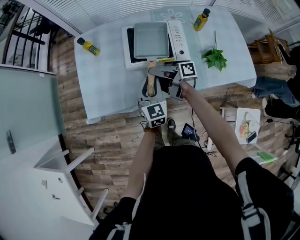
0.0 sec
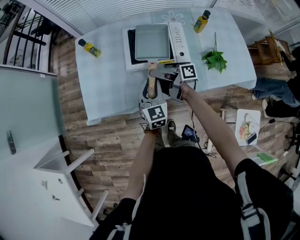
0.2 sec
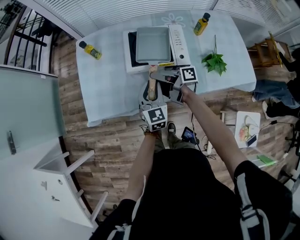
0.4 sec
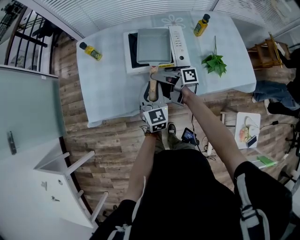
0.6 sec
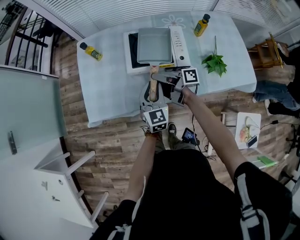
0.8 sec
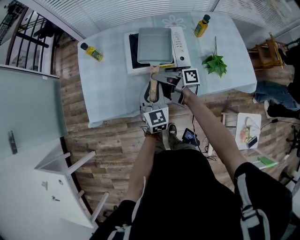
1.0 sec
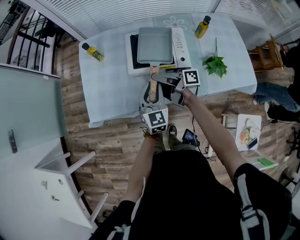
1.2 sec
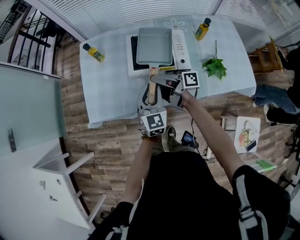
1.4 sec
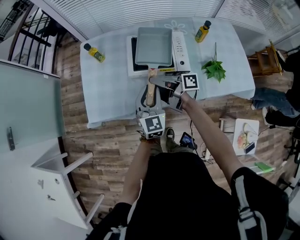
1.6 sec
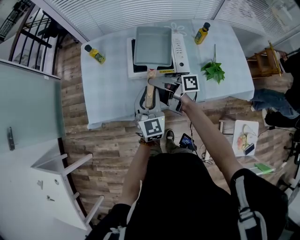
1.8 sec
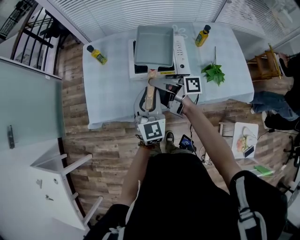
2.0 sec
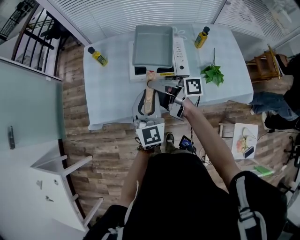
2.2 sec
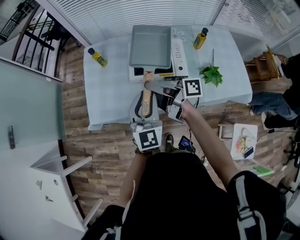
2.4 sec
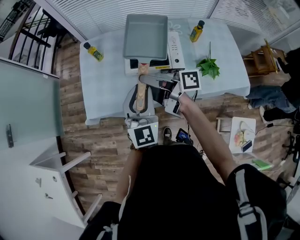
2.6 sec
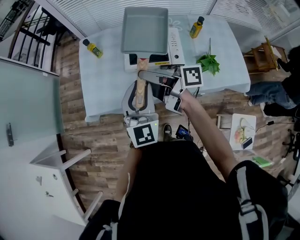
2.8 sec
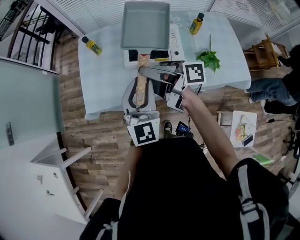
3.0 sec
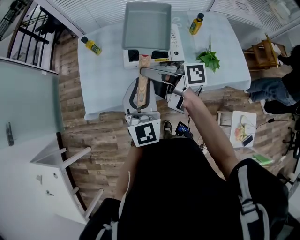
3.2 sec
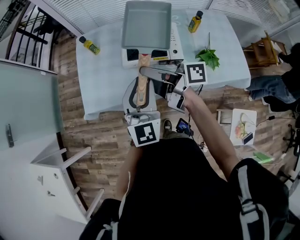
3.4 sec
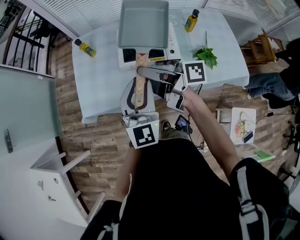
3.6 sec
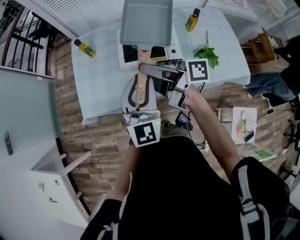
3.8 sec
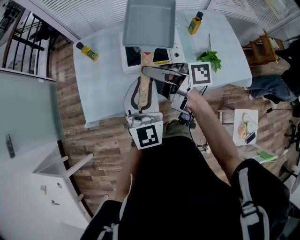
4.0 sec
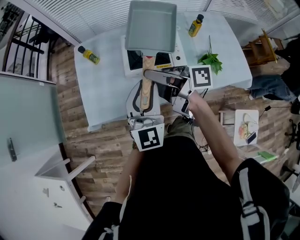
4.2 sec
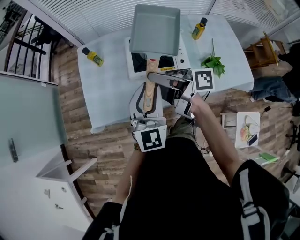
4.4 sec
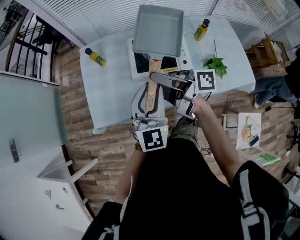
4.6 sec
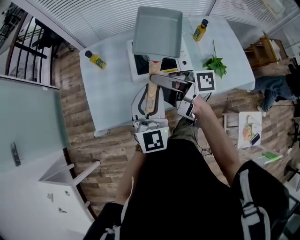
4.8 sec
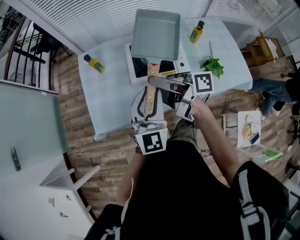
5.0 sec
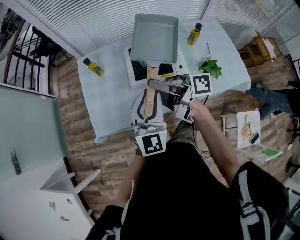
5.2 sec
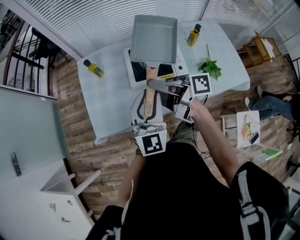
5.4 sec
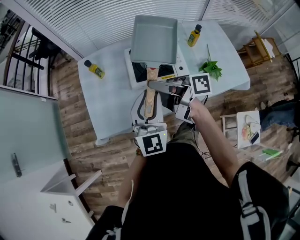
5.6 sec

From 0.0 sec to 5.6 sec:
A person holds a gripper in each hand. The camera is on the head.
From 0.0 sec to 1.4 sec: The grippers make only small movements.
From 1.4 sec to 2.8 sec: The grippers both shift upward by roughly 15 cm.
From 2.8 sec to 5.6 sec: There are only small adjustments of the grippers.

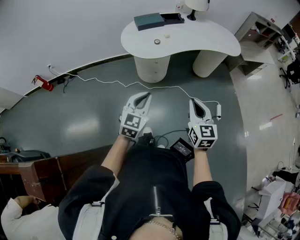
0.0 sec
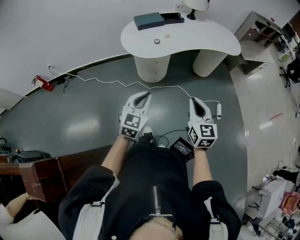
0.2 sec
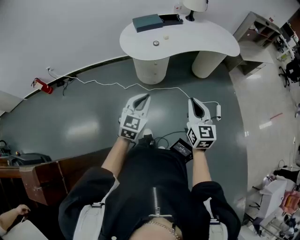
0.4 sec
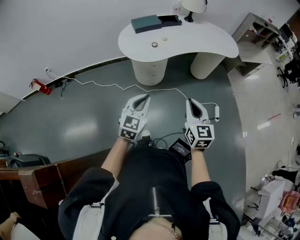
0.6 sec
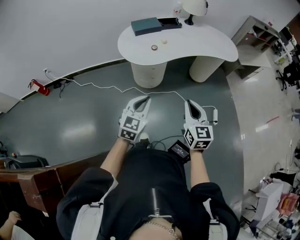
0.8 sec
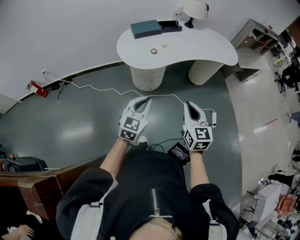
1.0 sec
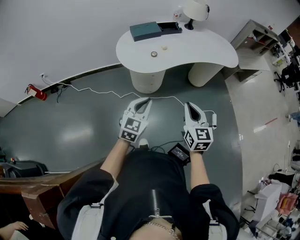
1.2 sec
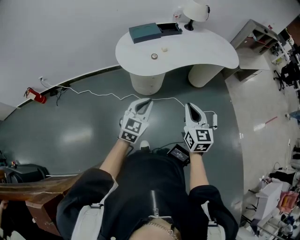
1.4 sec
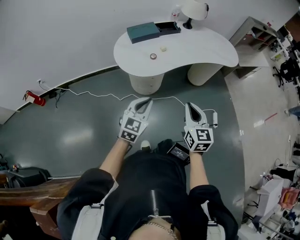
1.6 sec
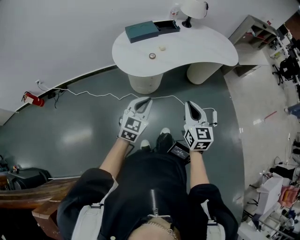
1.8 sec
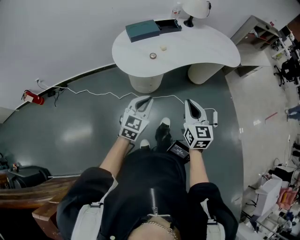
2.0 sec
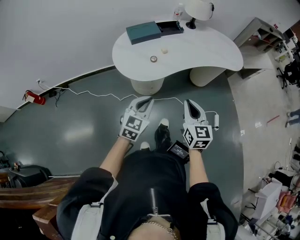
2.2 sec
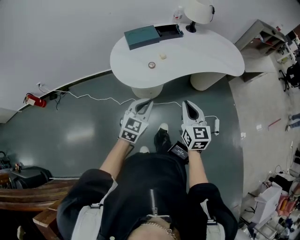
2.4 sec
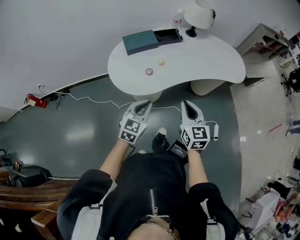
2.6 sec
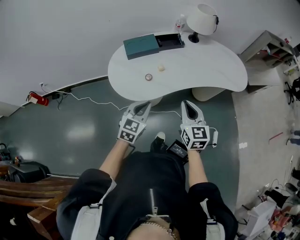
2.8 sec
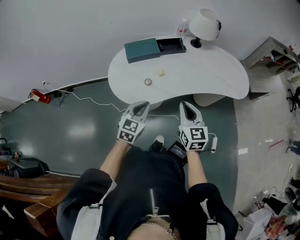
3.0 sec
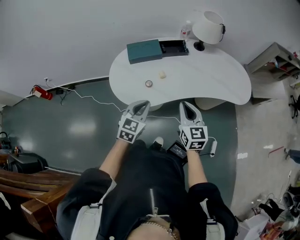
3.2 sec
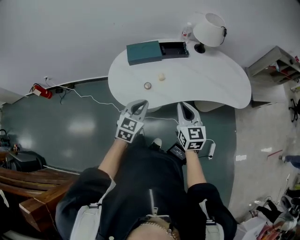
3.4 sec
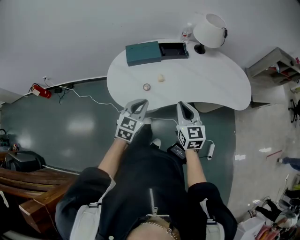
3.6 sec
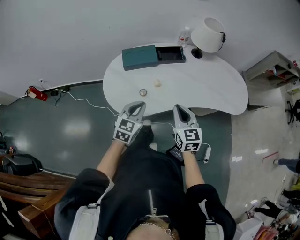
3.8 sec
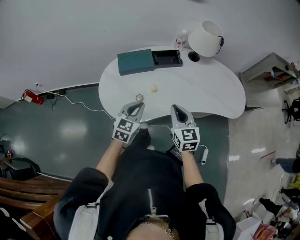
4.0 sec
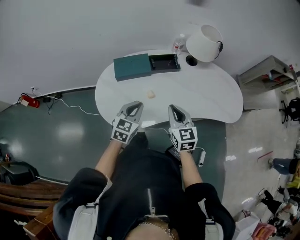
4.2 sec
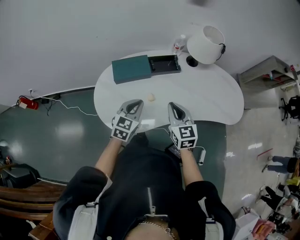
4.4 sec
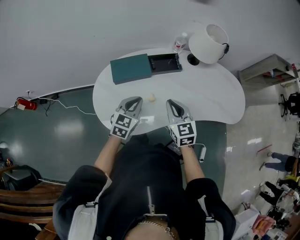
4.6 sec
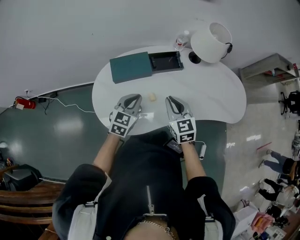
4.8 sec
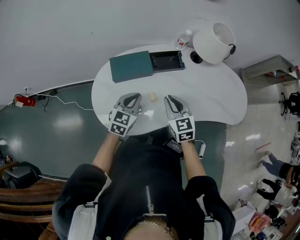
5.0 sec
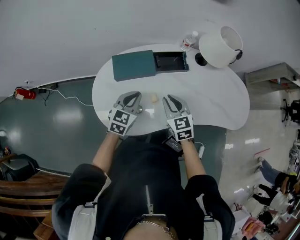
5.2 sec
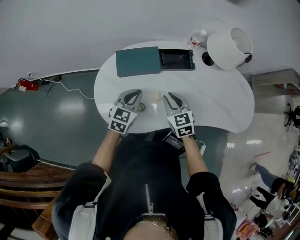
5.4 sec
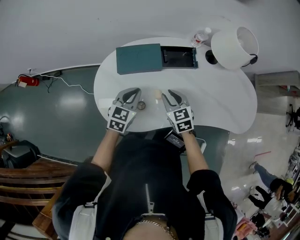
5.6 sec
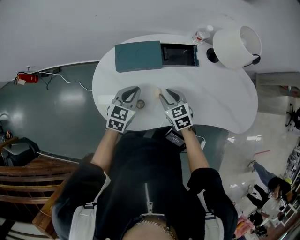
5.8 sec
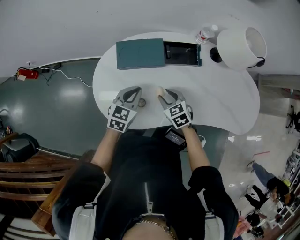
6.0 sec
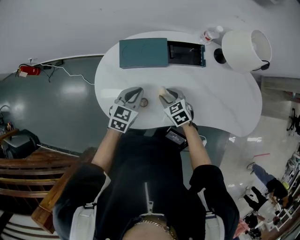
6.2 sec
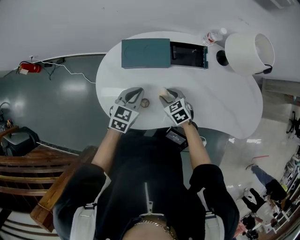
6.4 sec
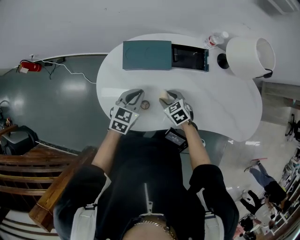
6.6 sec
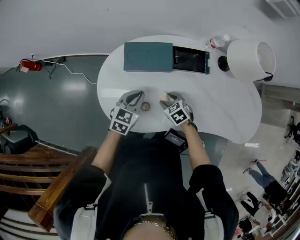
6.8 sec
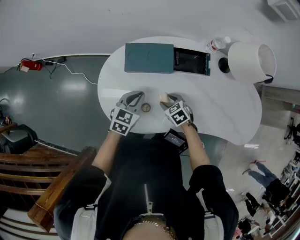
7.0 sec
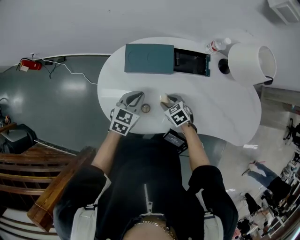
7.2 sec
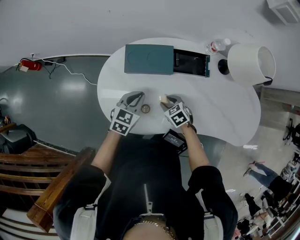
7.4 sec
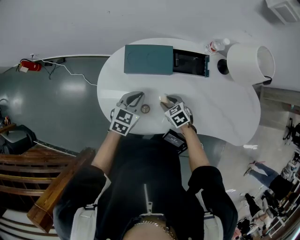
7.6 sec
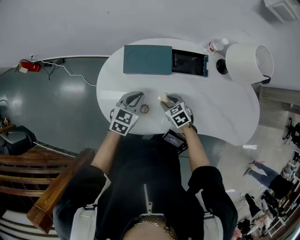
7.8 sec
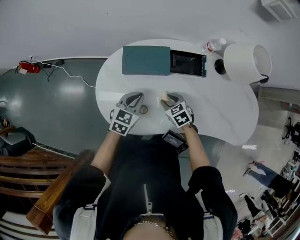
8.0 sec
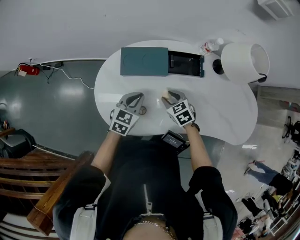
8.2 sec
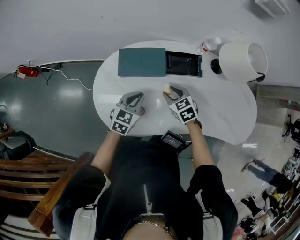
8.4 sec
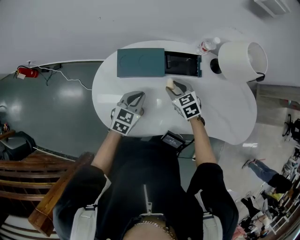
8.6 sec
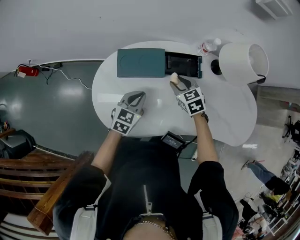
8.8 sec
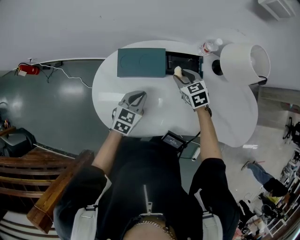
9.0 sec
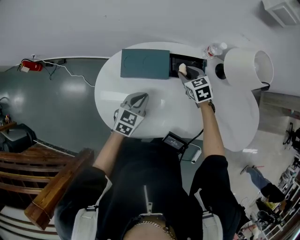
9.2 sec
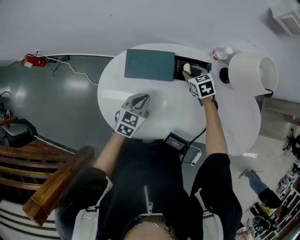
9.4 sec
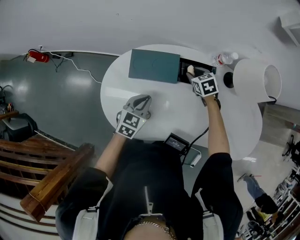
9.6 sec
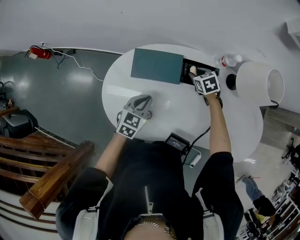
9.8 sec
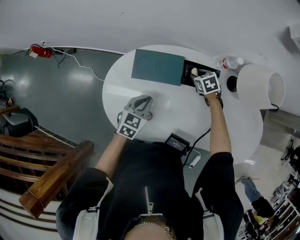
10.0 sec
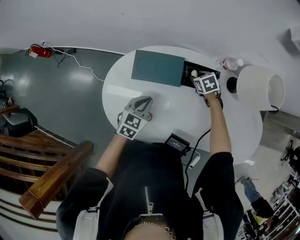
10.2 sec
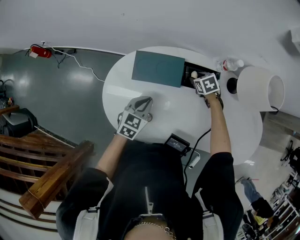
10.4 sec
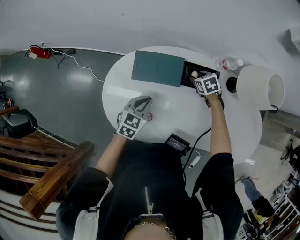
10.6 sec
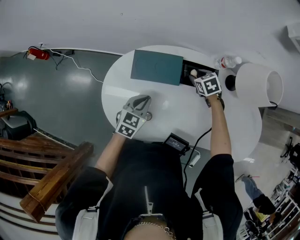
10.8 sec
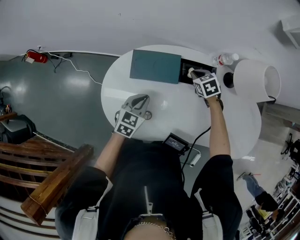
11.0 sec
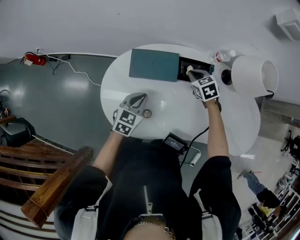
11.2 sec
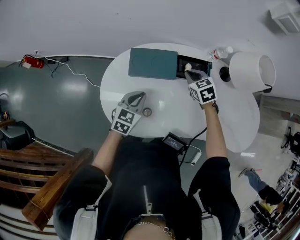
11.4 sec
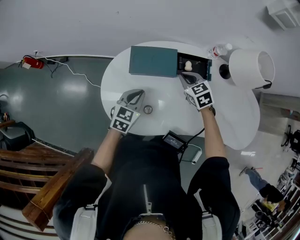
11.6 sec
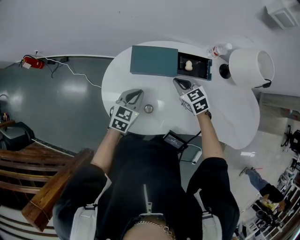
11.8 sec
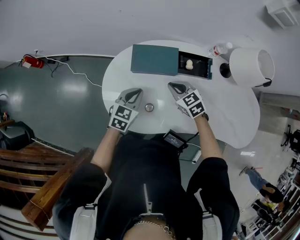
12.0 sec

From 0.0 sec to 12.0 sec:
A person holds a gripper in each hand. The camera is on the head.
From 0.0 sec to 1.6 sec: Both grippers move forward, approximately 10 cm.
From 1.6 sec to 3.0 sec: Both grippers move forward, approximately 25 cm.
From 3.0 sec to 4.4 sec: Both grippers move forward, approximately 20 cm.
From 4.4 sec to 6.0 sec: The left gripper goes about 10 cm downward and forward. Meanwhile the right gripper travels downward and forward by approximately 20 cm, changes its angle by roughly 40 degrees, and opens.
From 6.0 sec to 7.6 sec: The right gripper heads downward, covering about 5 cm.
From 7.6 sec to 9.0 sec: The right gripper is displaced forward, upward and to the right by some 20 cm.
From 9.0 sec to 10.4 sec: The right gripper shifts some 10 cm downward and forward, and rotates some 20 degrees.
From 10.4 sec to 12.0 sec: The left gripper ends up roughly 5 cm from where it was. The right gripper heads backward, to the left and upward, covering some 20 cm, turns by about 30 degrees, and closes up.

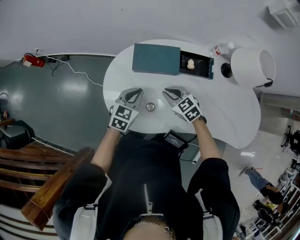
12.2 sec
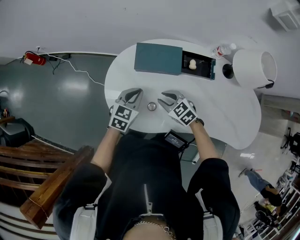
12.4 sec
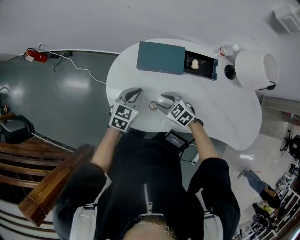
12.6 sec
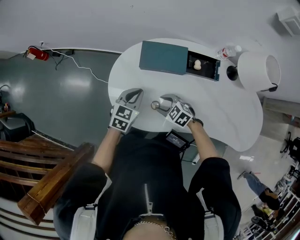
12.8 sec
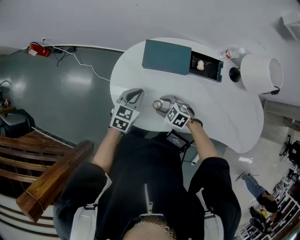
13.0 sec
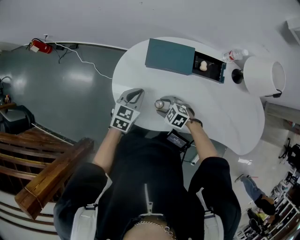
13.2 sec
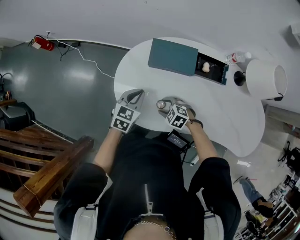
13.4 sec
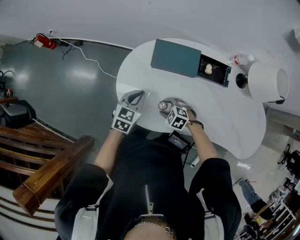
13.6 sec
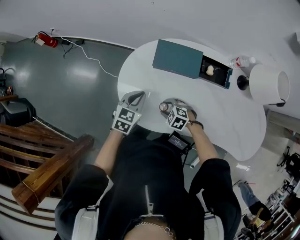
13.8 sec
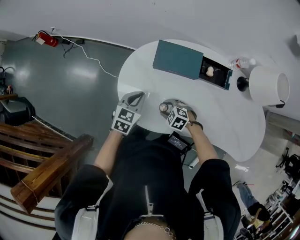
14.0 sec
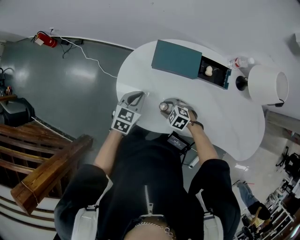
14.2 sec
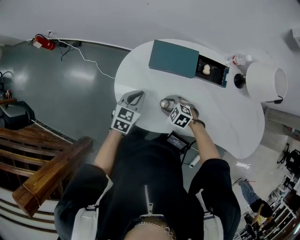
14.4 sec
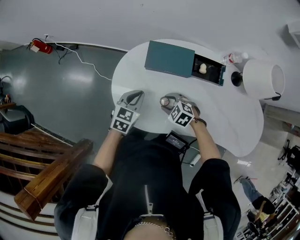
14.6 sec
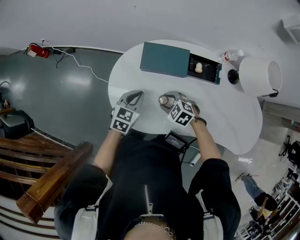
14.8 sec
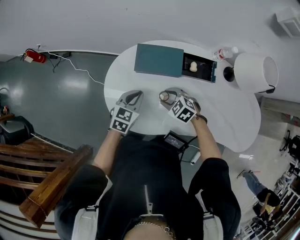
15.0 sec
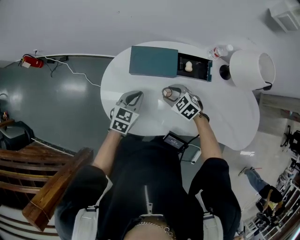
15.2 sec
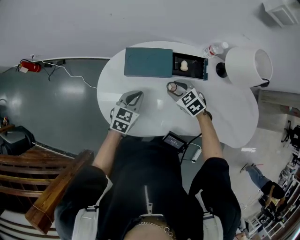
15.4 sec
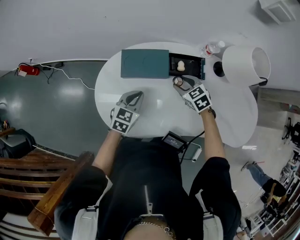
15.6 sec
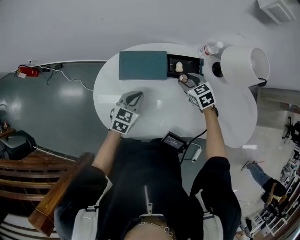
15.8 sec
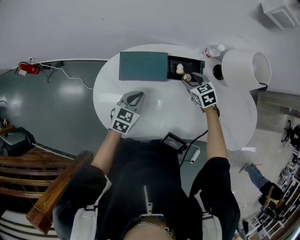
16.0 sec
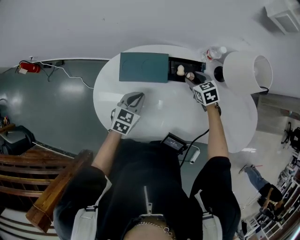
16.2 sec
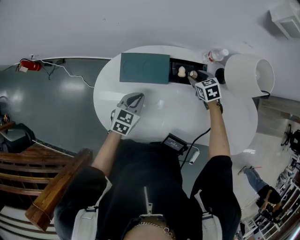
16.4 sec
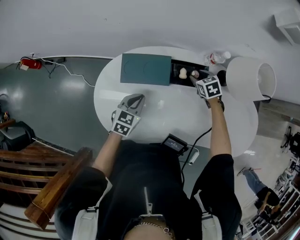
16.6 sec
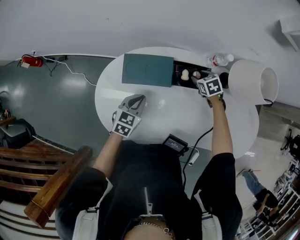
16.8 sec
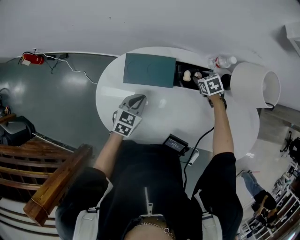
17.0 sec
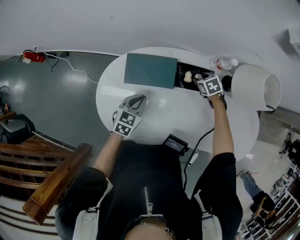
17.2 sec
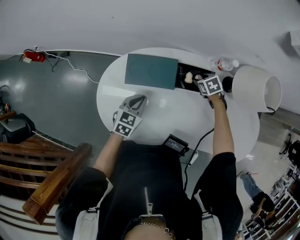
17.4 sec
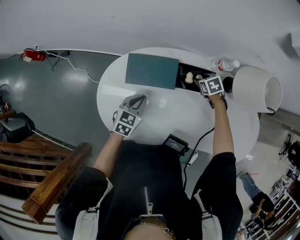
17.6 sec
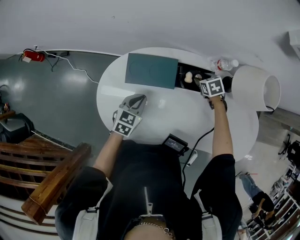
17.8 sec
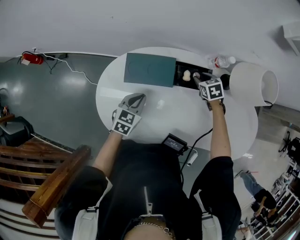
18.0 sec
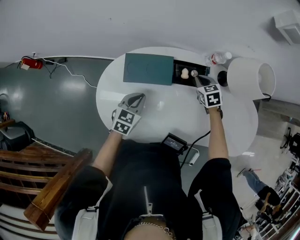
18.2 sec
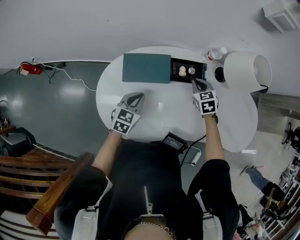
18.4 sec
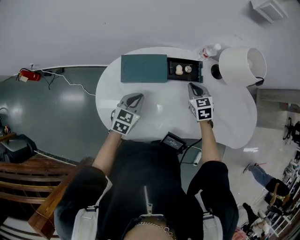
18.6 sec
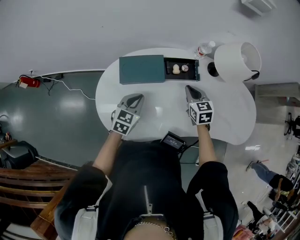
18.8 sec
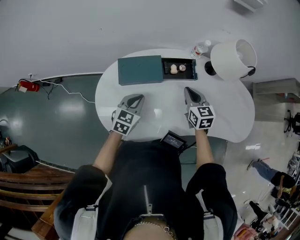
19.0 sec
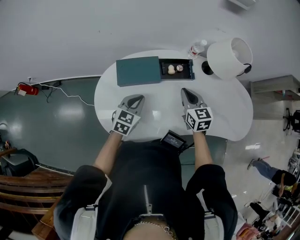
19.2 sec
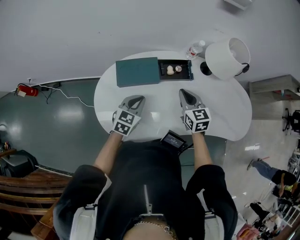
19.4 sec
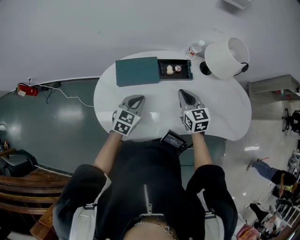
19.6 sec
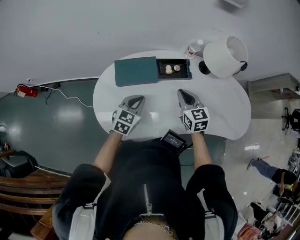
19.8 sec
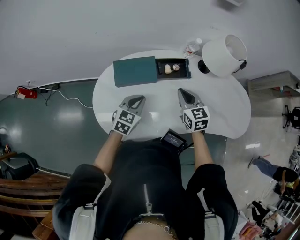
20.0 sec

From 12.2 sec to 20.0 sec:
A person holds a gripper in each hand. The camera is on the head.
From 12.2 sec to 13.8 sec: The left gripper shifts approximately 5 cm to the left. The right gripper travels downward, to the left and backward by approximately 15 cm, swivels approximately 40 degrees, and opens up.
From 13.8 sec to 15.4 sec: The right gripper moves to the right, upward and forward, about 20 cm, and changes its angle by approximately 30 degrees. The left gripper moves to the right, some 10 cm.
From 15.4 sec to 16.8 sec: The right gripper goes approximately 20 cm to the right and forward, and rotates roughly 20 degrees.
From 16.8 sec to 18.4 sec: The right gripper is displaced backward and upward by approximately 10 cm, and closes its fingers.
From 18.4 sec to 20.0 sec: The left gripper changes place by roughly 5 cm. The right gripper moves backward and upward, approximately 15 cm, and rotates about 20 degrees.
